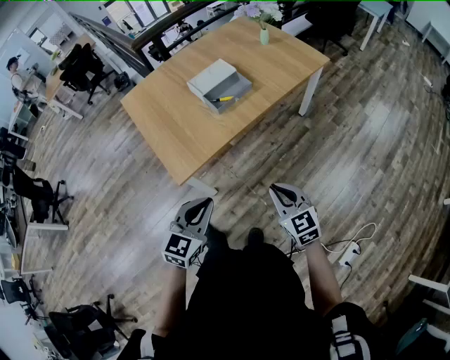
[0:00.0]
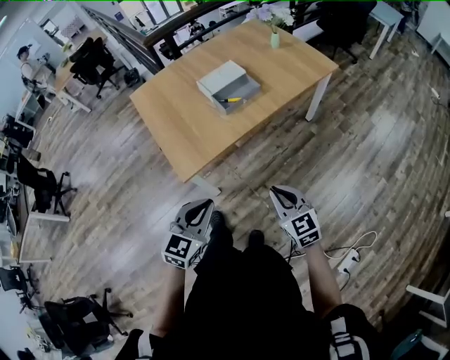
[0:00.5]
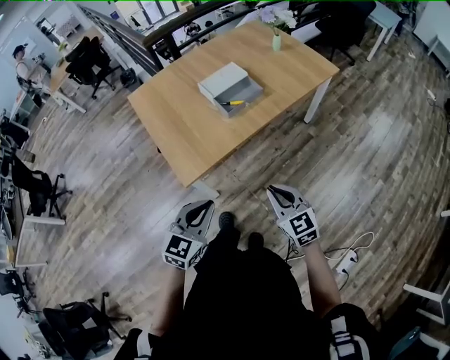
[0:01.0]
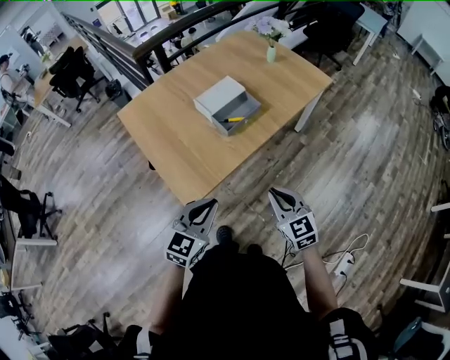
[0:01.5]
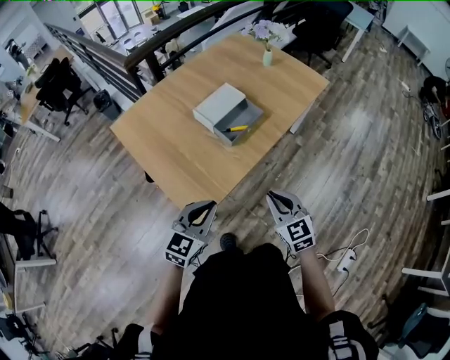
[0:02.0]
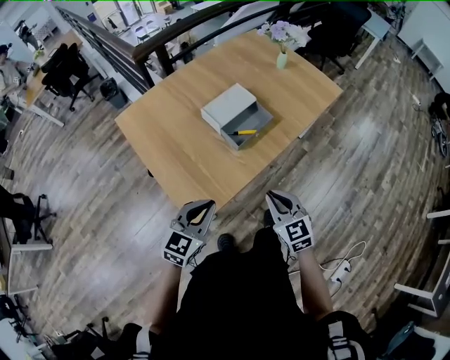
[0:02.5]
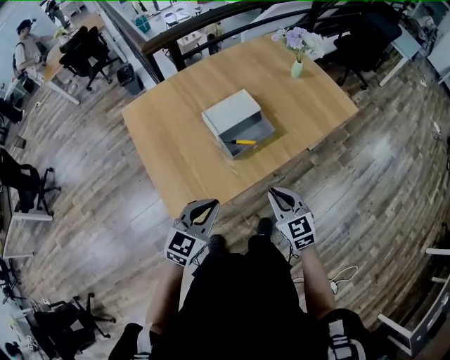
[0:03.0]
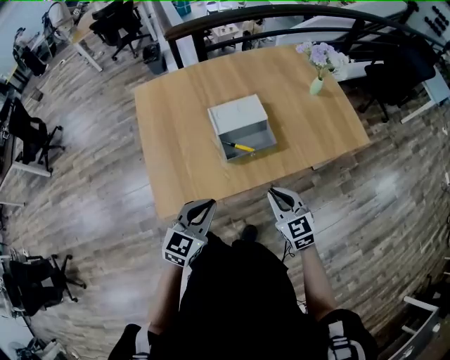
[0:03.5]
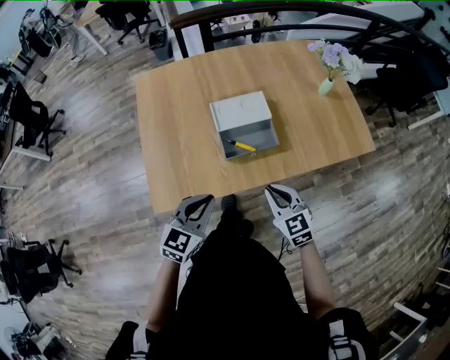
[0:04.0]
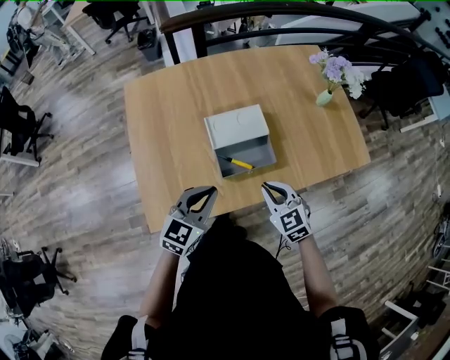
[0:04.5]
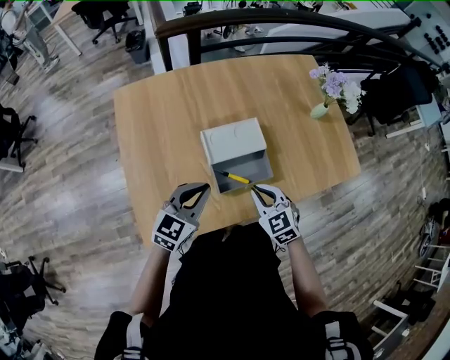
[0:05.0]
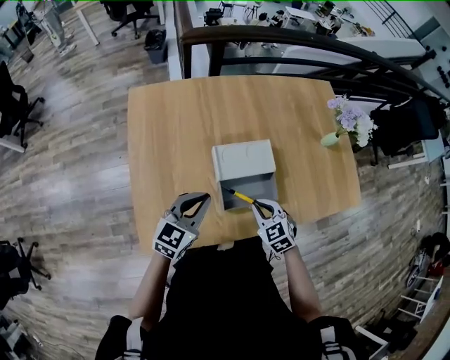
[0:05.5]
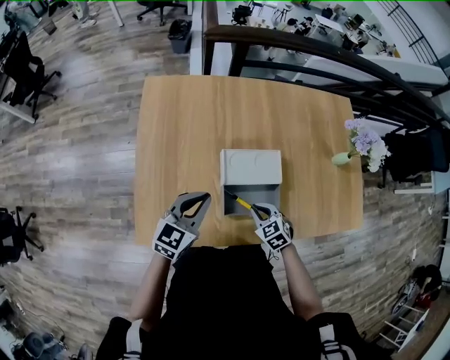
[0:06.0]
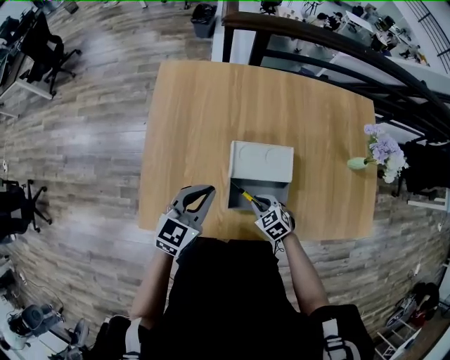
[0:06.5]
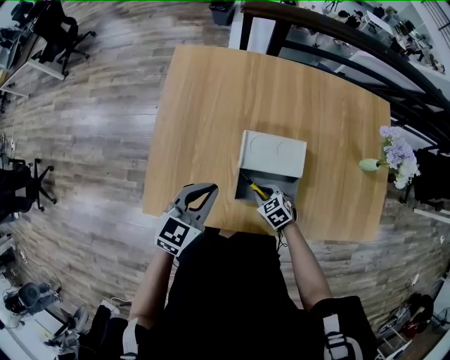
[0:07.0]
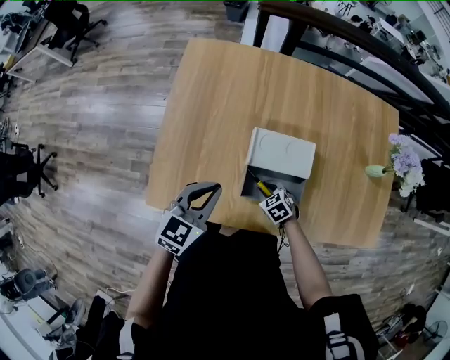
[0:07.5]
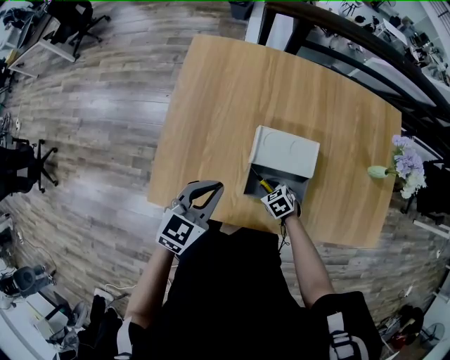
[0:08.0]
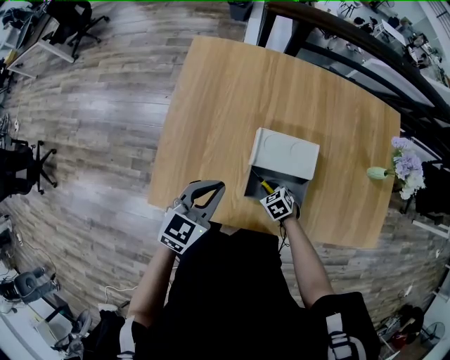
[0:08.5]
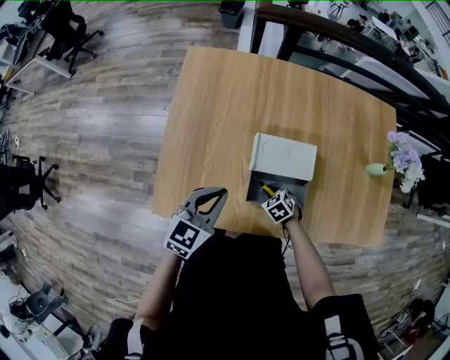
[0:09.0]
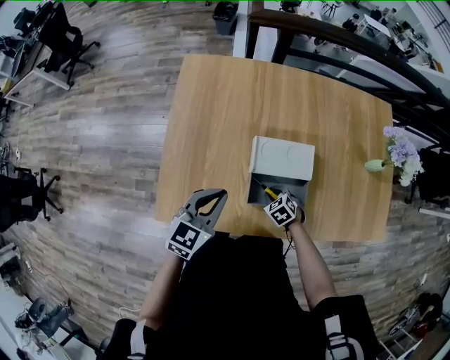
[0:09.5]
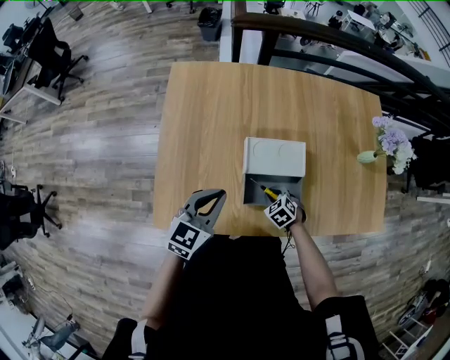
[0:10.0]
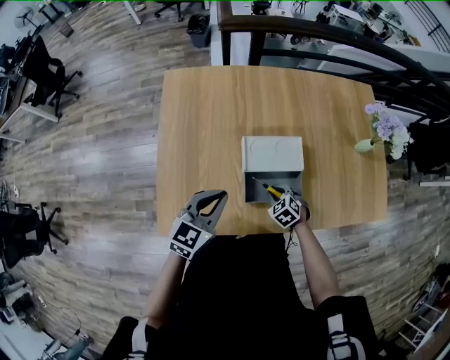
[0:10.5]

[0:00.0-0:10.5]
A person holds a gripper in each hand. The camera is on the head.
0:00.0 to 0:02.0: The two grippers go roughly 20 cm forward and to the left.
0:02.0 to 0:04.0: The left gripper moves roughly 20 cm, and rotates about 30 degrees. The right gripper shifts by some 25 cm, and changes its angle by roughly 30 degrees.
0:04.0 to 0:06.5: The right gripper ends up approximately 25 cm from where it was, and swivels roughly 40 degrees, while the left gripper ends up roughly 25 cm from where it was.
0:06.5 to 0:08.5: The right gripper shifts about 5 cm downward.
0:08.5 to 0:10.5: The right gripper ends up some 5 cm from where it was.

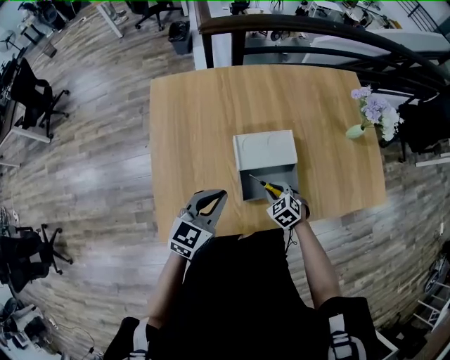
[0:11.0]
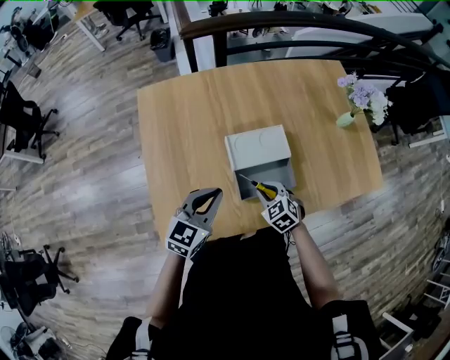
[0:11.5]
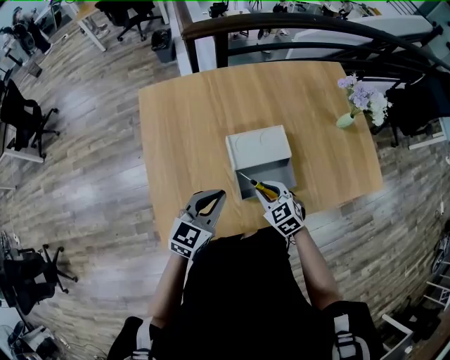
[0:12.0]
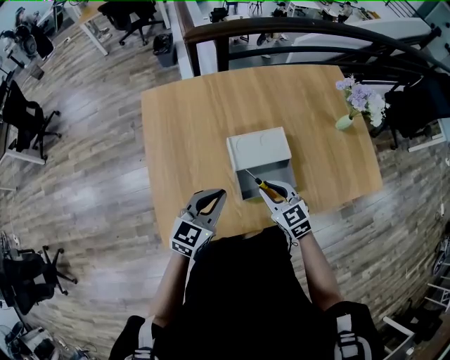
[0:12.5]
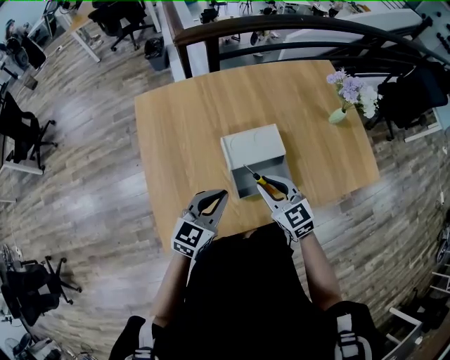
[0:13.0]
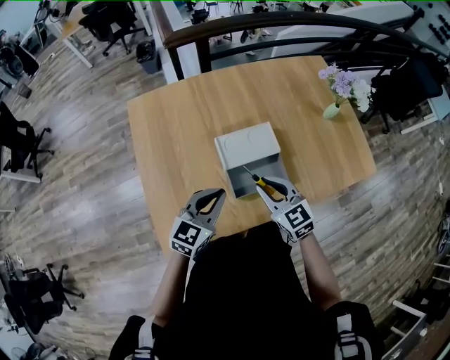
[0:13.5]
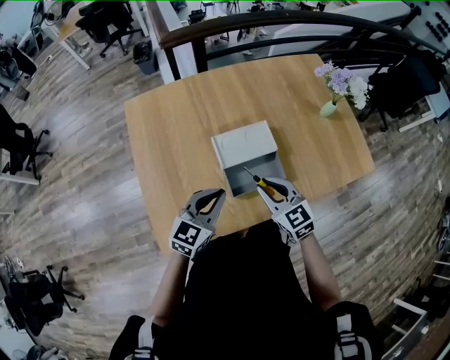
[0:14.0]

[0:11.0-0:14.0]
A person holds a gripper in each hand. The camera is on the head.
0:11.0 to 0:12.5: The right gripper shifts roughly 15 cm upward, and turns by approximately 30 degrees.
0:12.5 to 0:14.0: There are only small adjustments of the grippers.

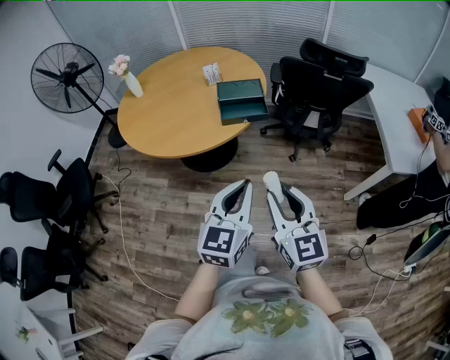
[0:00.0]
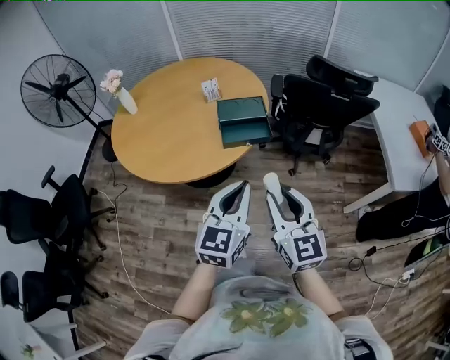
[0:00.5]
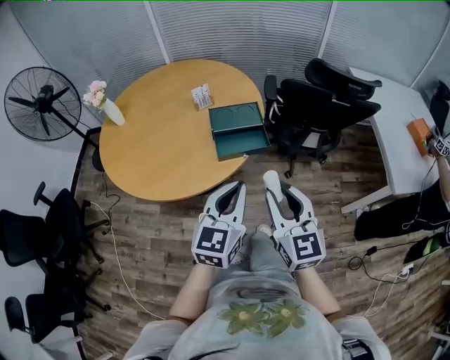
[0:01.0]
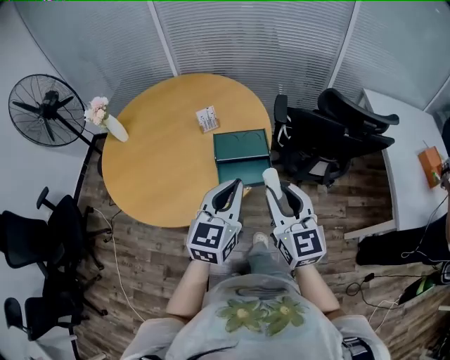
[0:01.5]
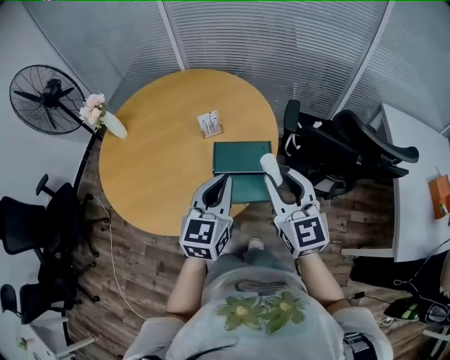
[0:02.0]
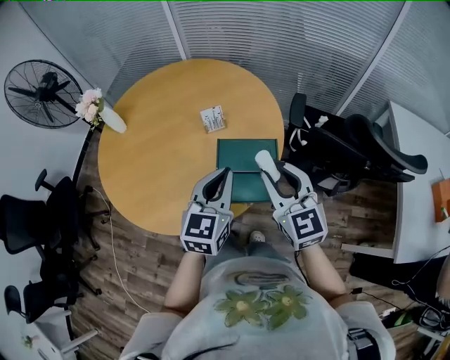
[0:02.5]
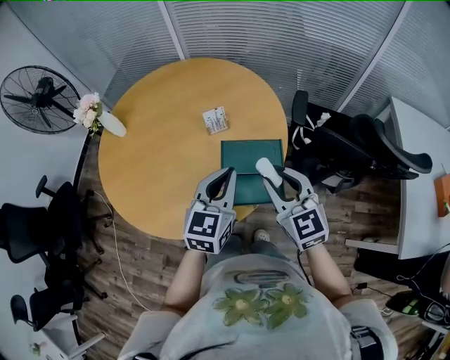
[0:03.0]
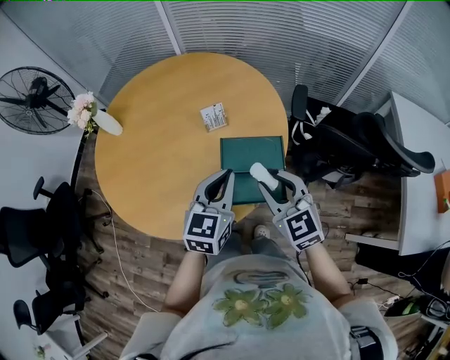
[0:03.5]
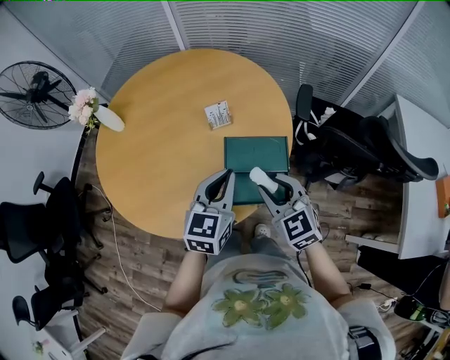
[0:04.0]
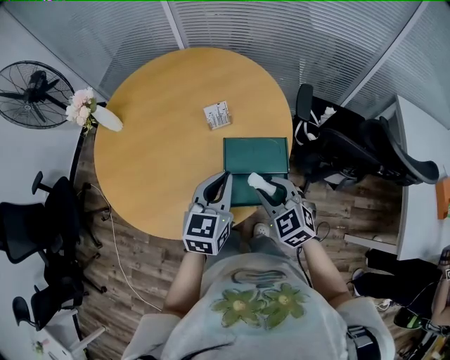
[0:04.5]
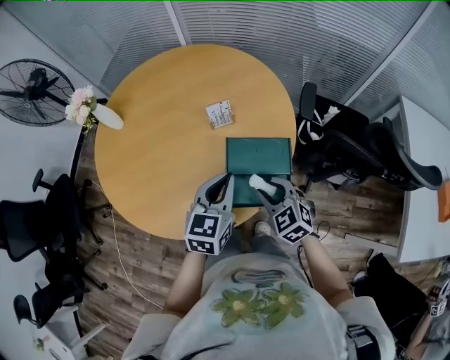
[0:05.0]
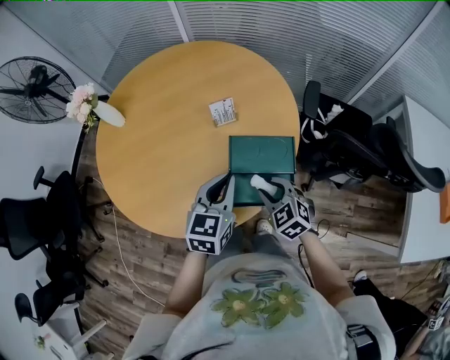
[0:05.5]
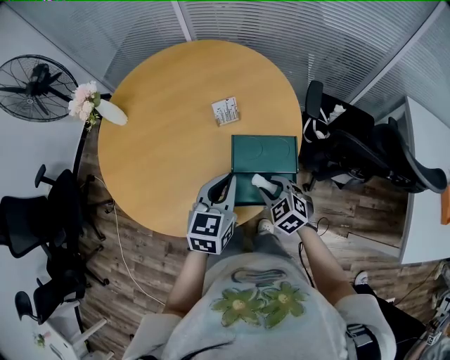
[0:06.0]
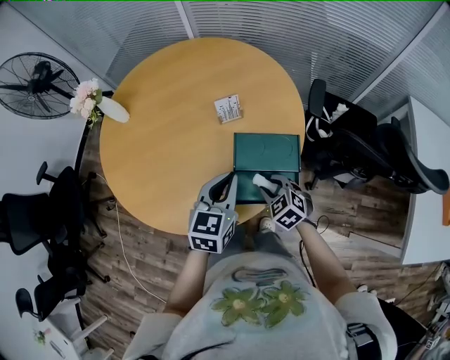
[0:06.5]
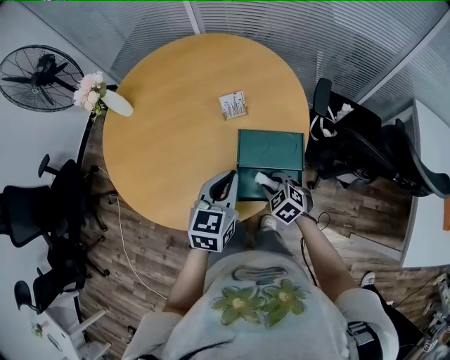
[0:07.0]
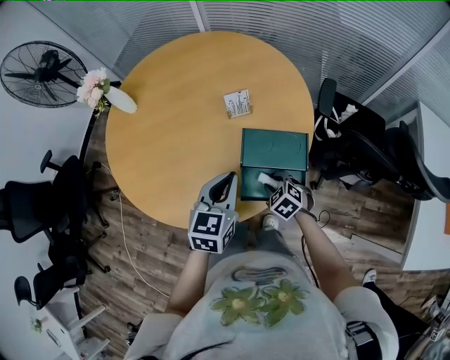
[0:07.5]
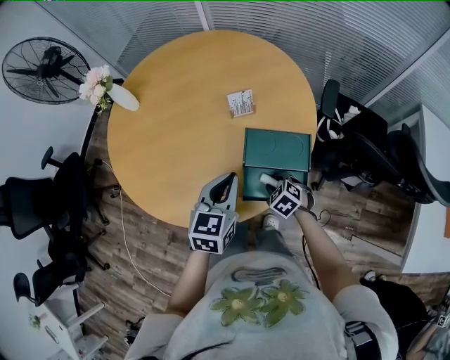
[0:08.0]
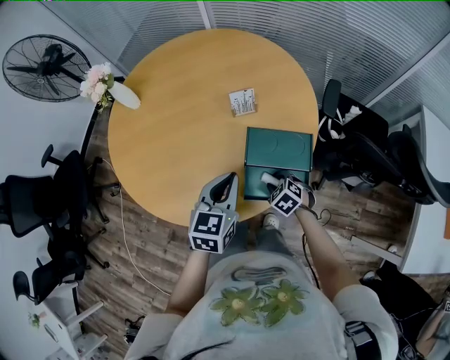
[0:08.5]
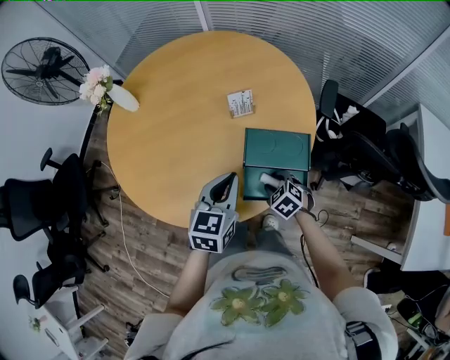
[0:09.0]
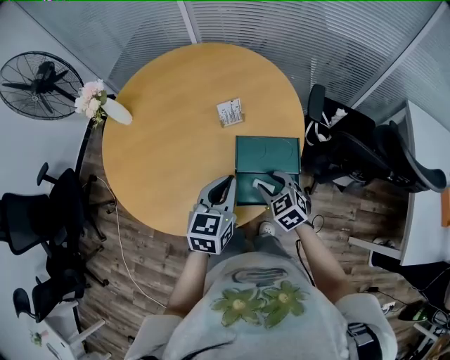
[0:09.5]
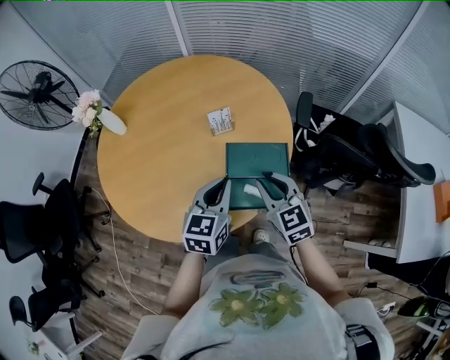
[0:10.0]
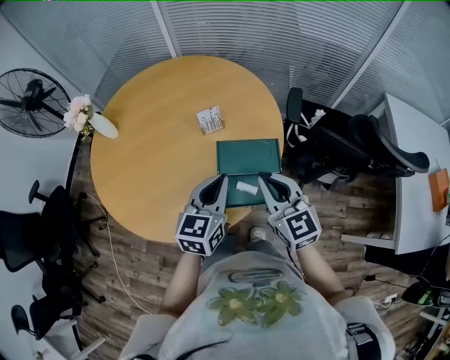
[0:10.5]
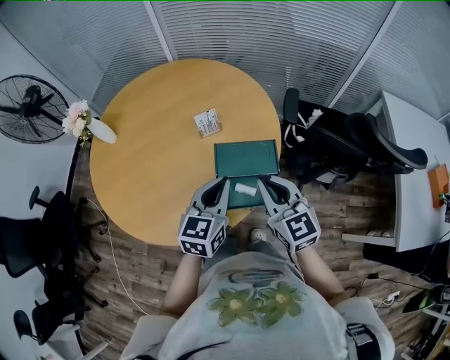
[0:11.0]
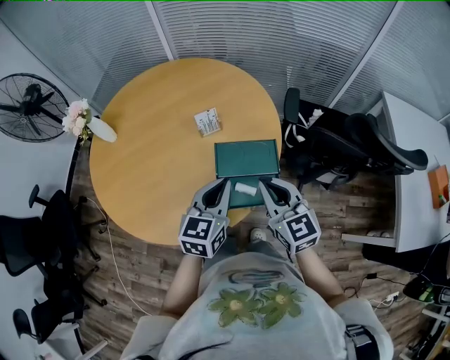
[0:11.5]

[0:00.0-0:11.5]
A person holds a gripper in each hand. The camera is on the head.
0:00.0 to 0:02.0: The two grippers travel together, forward, some 50 cm.
0:02.0 to 0:04.0: The right gripper shifts roughly 15 cm downward, to the left and forward, and turns by about 30 degrees. Meanwhile the left gripper heads forward and downward, covering some 10 cm.
0:04.0 to 0:06.0: The right gripper goes approximately 15 cm downward, and turns by roughly 20 degrees.
0:06.0 to 0:07.5: The right gripper goes about 10 cm downward.
0:07.5 to 0:09.5: The right gripper goes about 10 cm upward.
0:09.5 to 0:11.5: The right gripper is displaced upward by approximately 15 cm, changes its angle by some 30 degrees, and closes up; the left gripper changes place by about 5 cm.

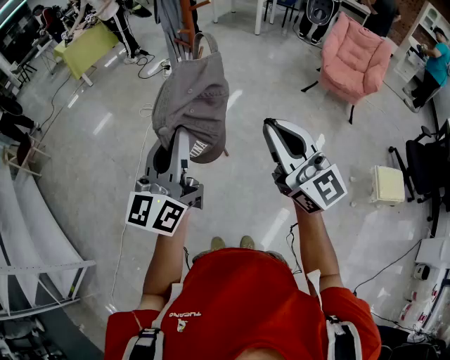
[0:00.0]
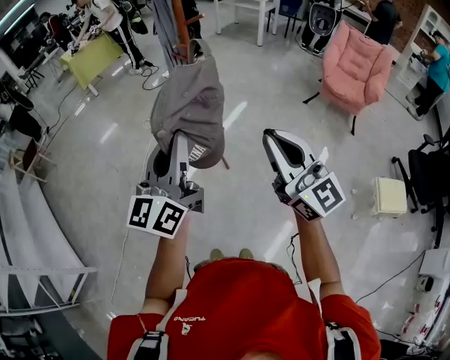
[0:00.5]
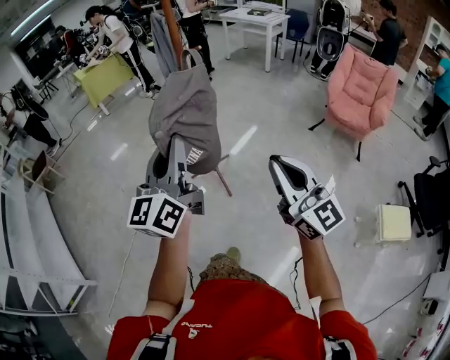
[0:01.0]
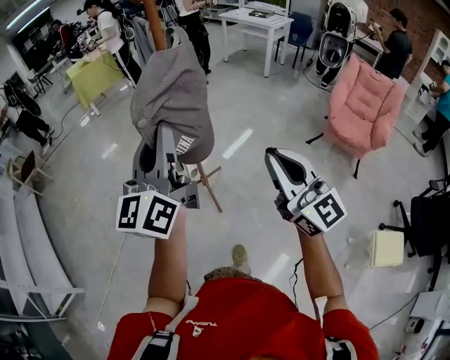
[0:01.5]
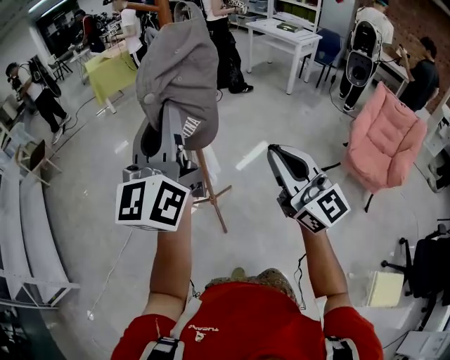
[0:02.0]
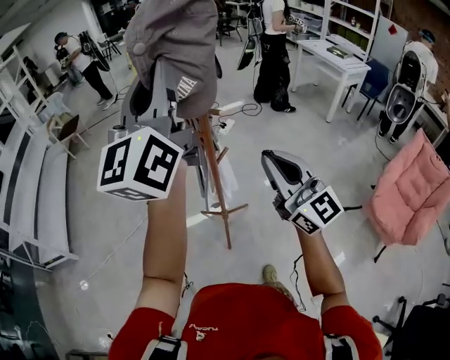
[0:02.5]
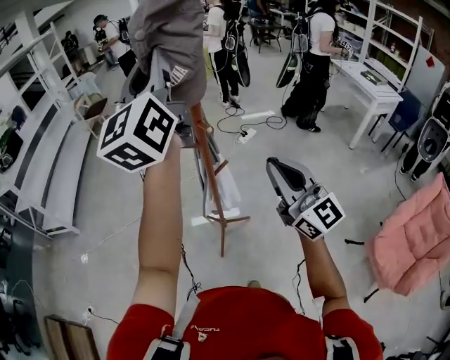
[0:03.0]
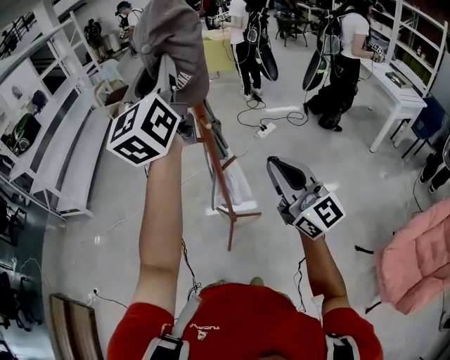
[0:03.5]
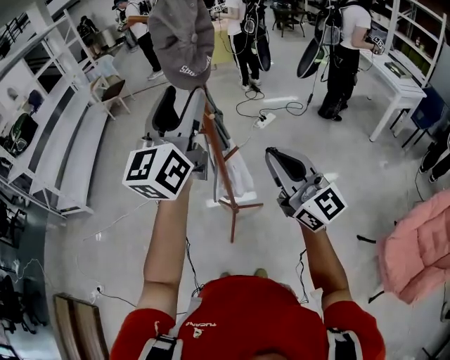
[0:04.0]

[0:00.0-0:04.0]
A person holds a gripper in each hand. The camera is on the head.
0:00.0 to 0:02.0: The left gripper heads forward, to the right and upward, covering about 35 cm, and turns by about 30 degrees; the right gripper is displaced forward and to the right by approximately 35 cm.
0:02.0 to 0:04.0: The left gripper reaches about 15 cm upward, then returns, swivels about 30 degrees, and opens up. The right gripper moves some 20 cm, and turns by some 40 degrees.
